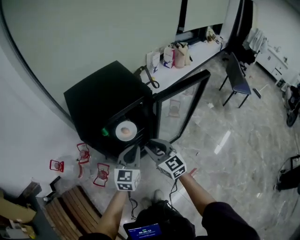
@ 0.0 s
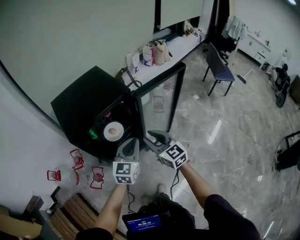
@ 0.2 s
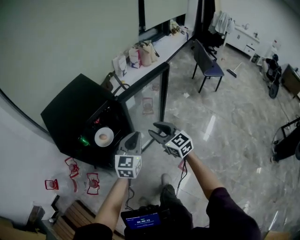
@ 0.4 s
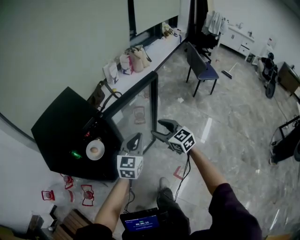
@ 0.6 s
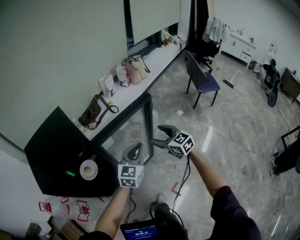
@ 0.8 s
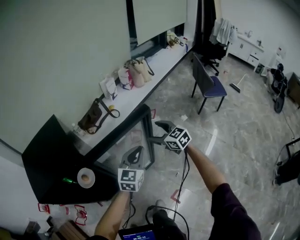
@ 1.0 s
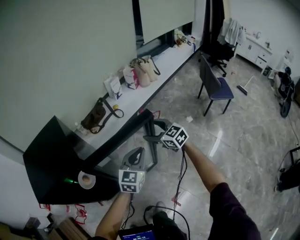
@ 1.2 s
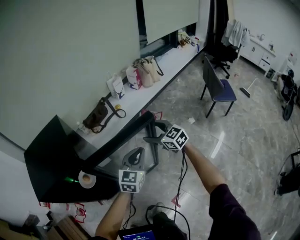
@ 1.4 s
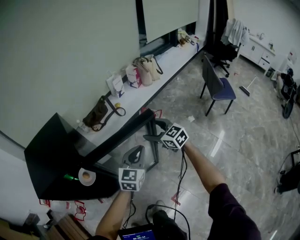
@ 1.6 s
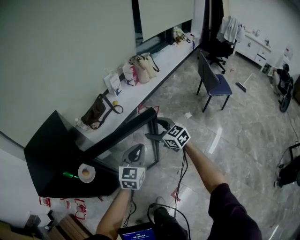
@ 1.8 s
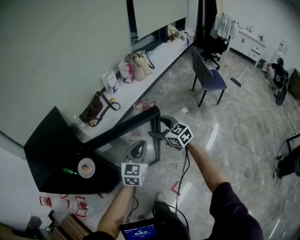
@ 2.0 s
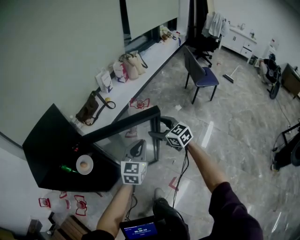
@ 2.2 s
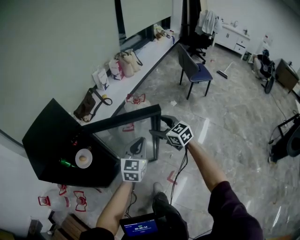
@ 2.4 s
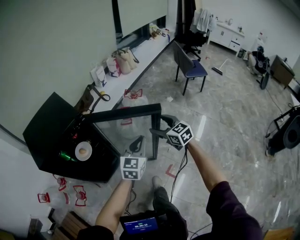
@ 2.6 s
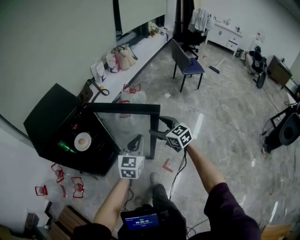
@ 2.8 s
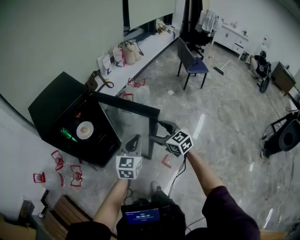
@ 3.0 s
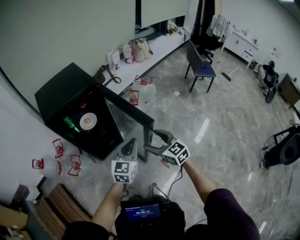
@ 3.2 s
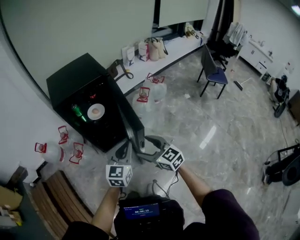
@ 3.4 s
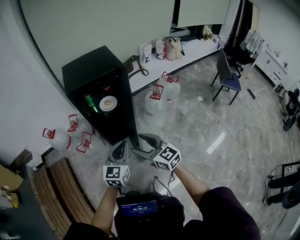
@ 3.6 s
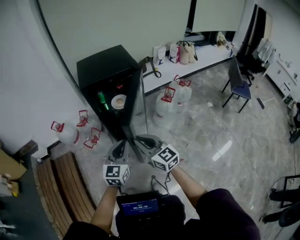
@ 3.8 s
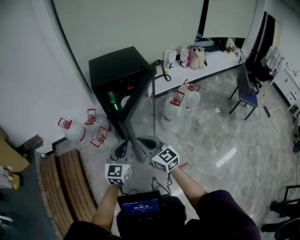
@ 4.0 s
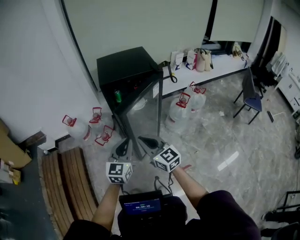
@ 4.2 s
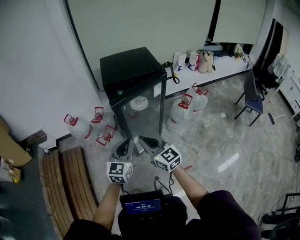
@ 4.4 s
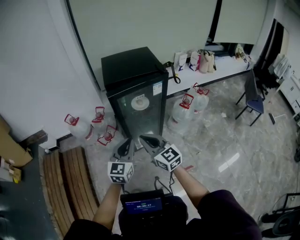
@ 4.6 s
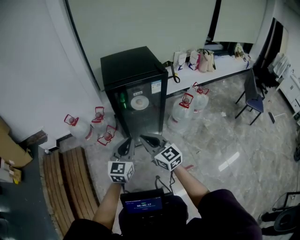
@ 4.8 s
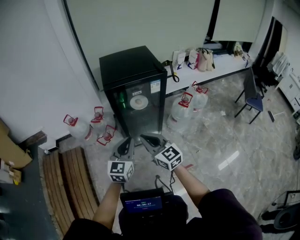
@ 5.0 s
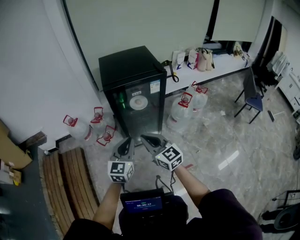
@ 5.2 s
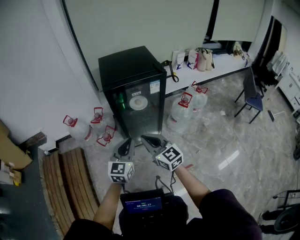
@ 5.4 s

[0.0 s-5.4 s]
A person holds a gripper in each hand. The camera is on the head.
0.0 to 1.4 s: The pair of grippers is taken to the right and forward, about 50 cm. The right gripper opens.
1.4 to 2.8 s: Both grippers travel together backward, some 35 cm. The right gripper changes its angle by approximately 20 degrees.
2.8 to 4.0 s: The left gripper moves approximately 30 cm, and swivels about 40 degrees. Meanwhile the right gripper changes place by roughly 35 cm, swivels approximately 40 degrees, and closes its fingers.
4.0 to 5.4 s: The grippers stay close to where they were, moving slightly.

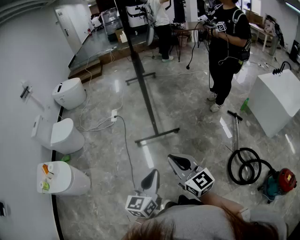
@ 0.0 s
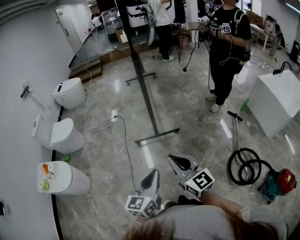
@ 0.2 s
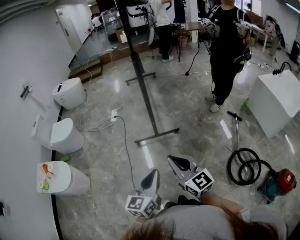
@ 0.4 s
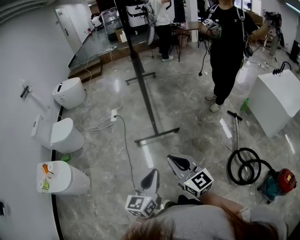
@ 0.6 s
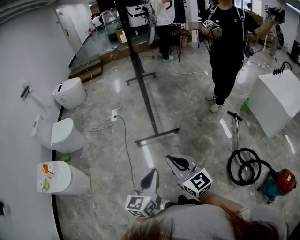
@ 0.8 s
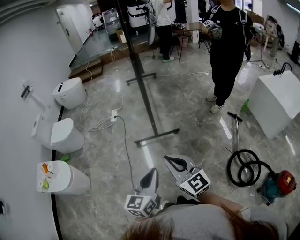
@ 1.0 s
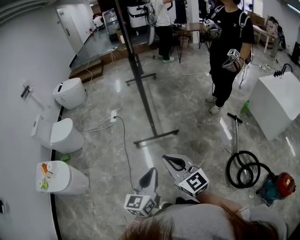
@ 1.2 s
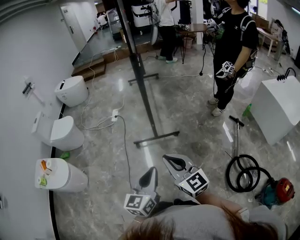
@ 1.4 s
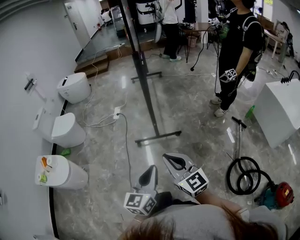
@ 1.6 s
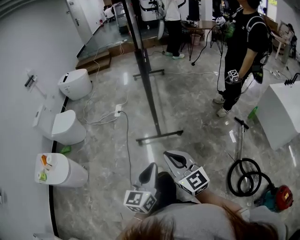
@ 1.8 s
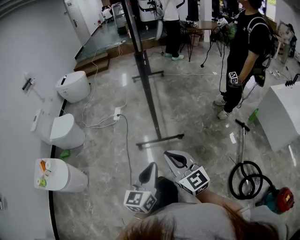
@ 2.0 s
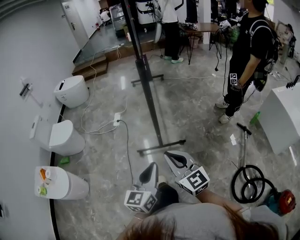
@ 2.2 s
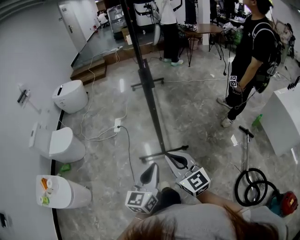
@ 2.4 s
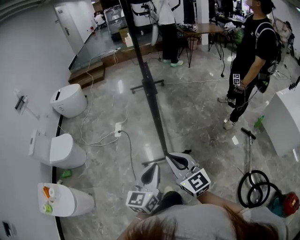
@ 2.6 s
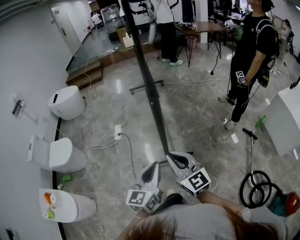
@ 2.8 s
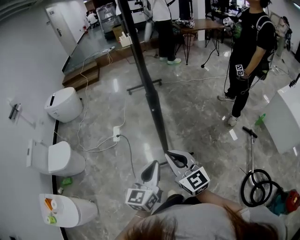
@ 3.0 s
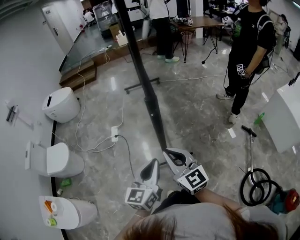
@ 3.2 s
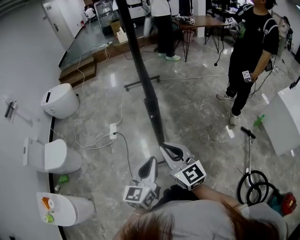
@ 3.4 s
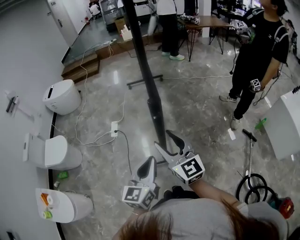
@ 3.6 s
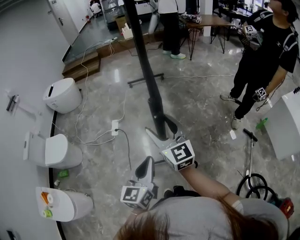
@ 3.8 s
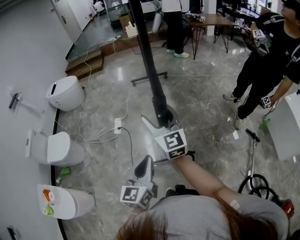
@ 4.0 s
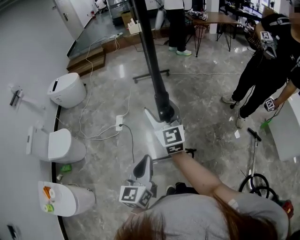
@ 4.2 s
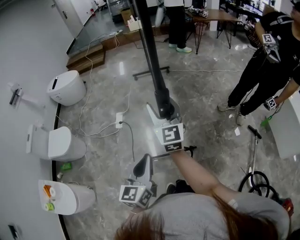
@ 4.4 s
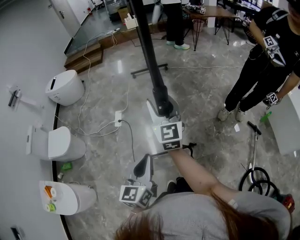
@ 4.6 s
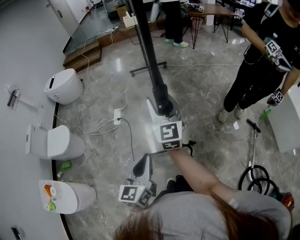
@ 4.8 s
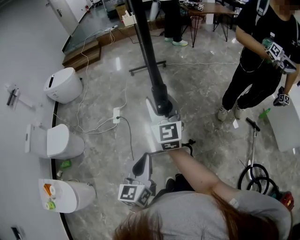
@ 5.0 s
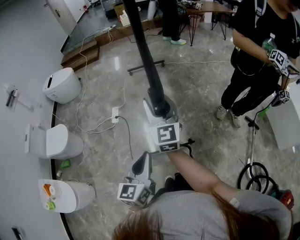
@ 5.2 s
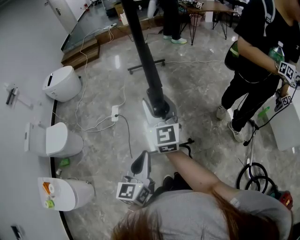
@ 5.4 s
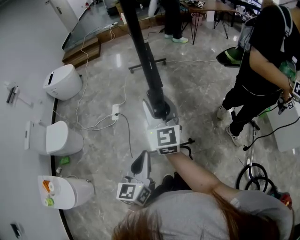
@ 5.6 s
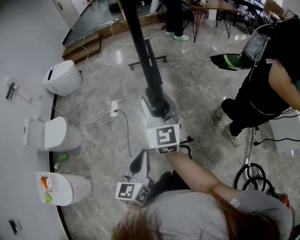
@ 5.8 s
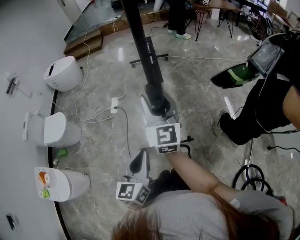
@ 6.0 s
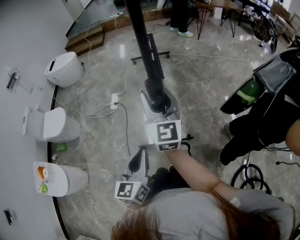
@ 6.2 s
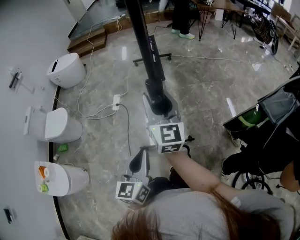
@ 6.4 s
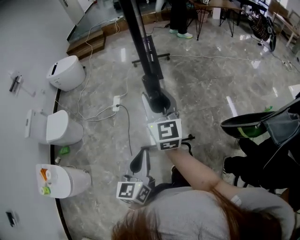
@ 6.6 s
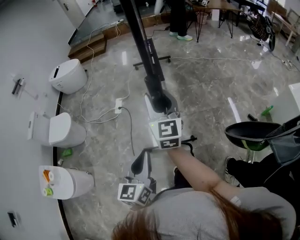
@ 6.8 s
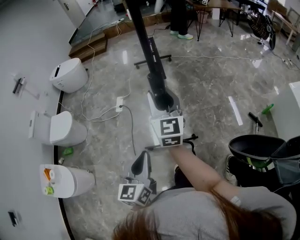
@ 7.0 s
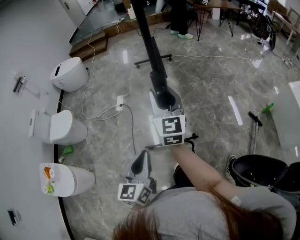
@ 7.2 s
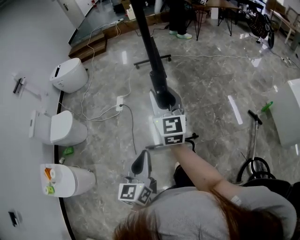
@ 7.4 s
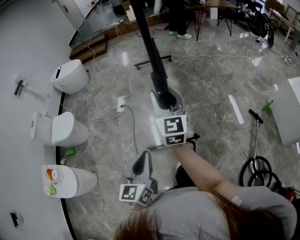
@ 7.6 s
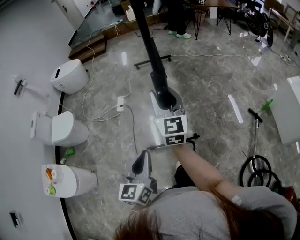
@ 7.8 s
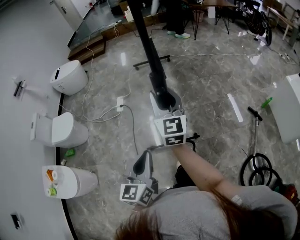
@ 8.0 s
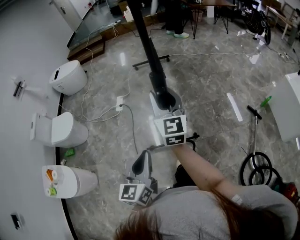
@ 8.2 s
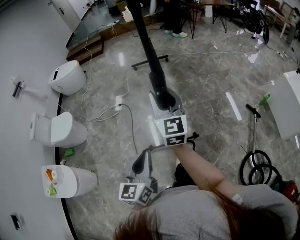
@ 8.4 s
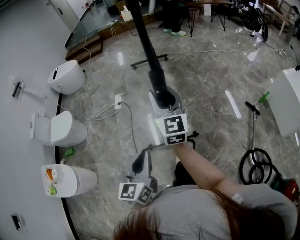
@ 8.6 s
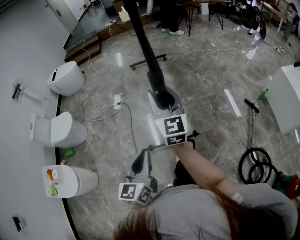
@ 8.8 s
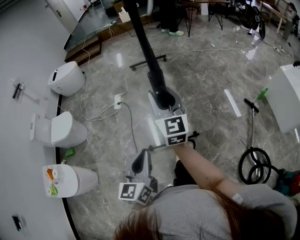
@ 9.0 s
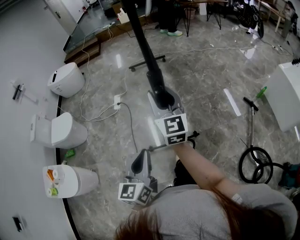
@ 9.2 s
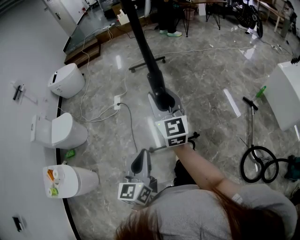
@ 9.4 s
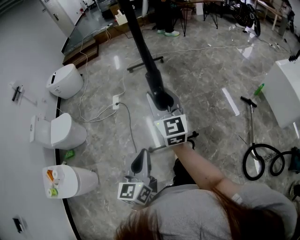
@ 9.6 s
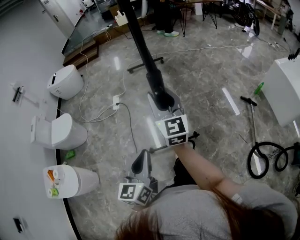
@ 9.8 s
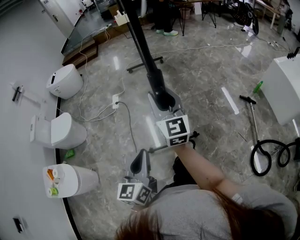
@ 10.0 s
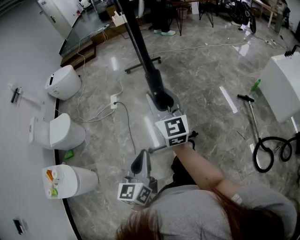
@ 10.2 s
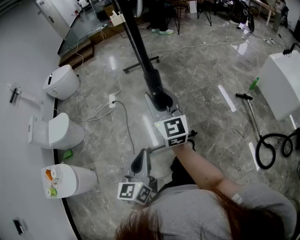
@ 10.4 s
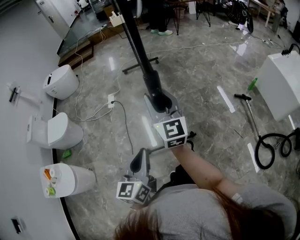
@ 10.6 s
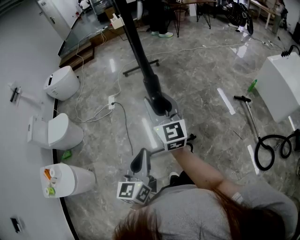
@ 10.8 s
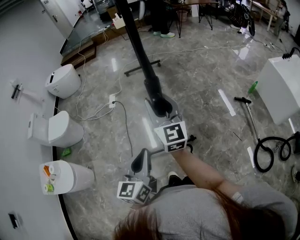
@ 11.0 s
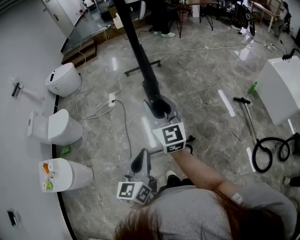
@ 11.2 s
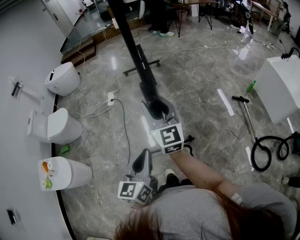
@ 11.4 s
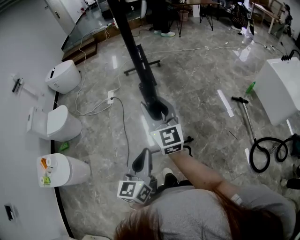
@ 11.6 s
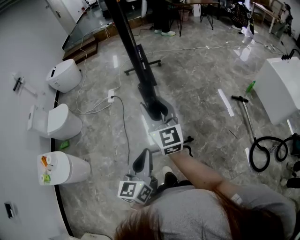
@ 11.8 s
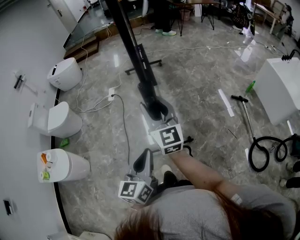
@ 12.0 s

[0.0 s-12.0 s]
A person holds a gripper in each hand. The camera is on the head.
0.0 to 1.6 s: The left gripper moves approximately 5 cm.
1.6 to 3.0 s: Both grippers move forward, approximately 35 cm.
3.0 to 4.4 s: The left gripper shifts by roughly 5 cm; the right gripper moves forward, about 20 cm, and opens up.
4.4 to 6.0 s: The left gripper changes place by roughly 5 cm; the right gripper is displaced backward by about 5 cm.
6.0 to 7.6 s: The two grippers go about 5 cm backward.
7.6 to 9.0 s: The two grippers go some 5 cm backward.
9.0 to 10.4 s: The grippers both shift backward by about 10 cm.
10.4 to 12.0 s: The right gripper is displaced backward by approximately 10 cm, while the left gripper travels backward and to the right by roughly 10 cm.

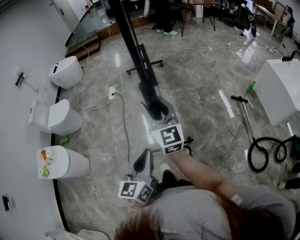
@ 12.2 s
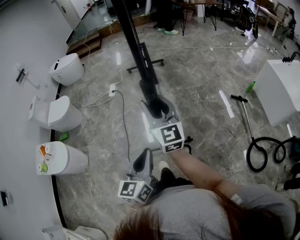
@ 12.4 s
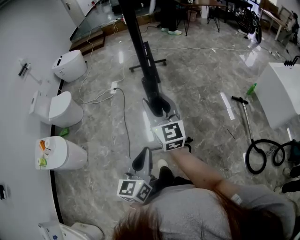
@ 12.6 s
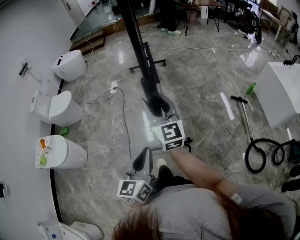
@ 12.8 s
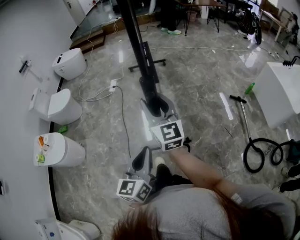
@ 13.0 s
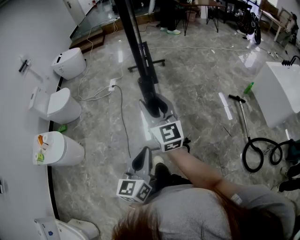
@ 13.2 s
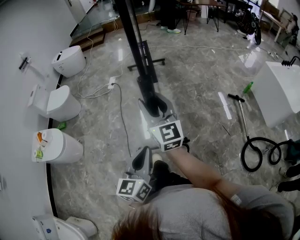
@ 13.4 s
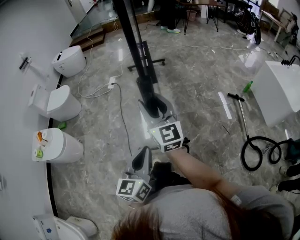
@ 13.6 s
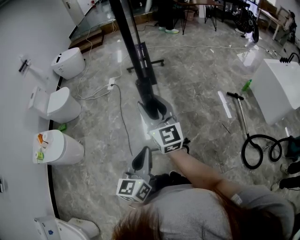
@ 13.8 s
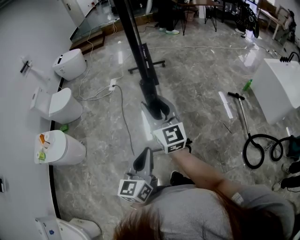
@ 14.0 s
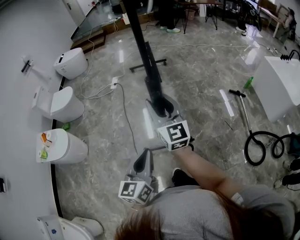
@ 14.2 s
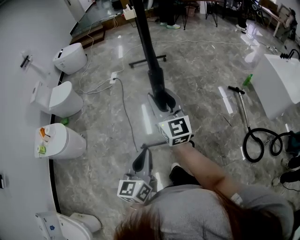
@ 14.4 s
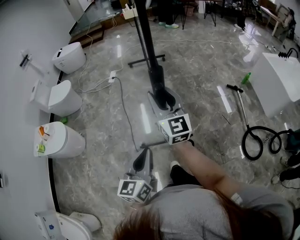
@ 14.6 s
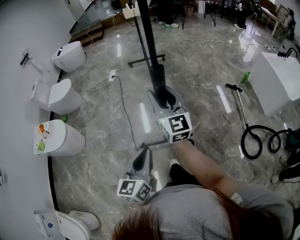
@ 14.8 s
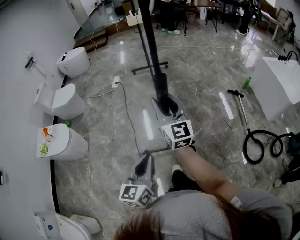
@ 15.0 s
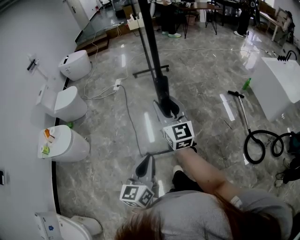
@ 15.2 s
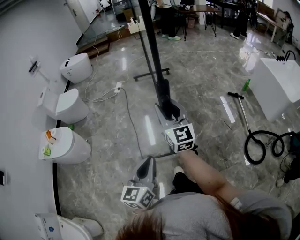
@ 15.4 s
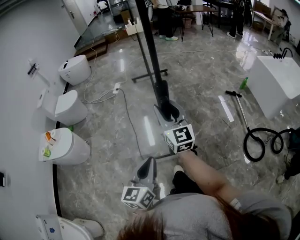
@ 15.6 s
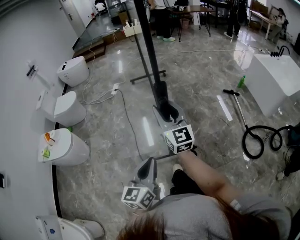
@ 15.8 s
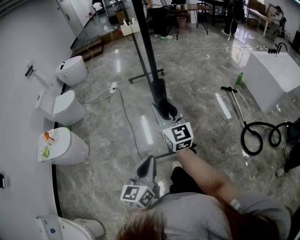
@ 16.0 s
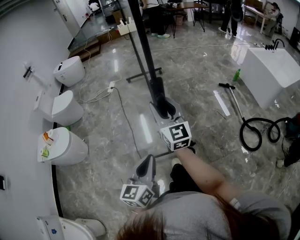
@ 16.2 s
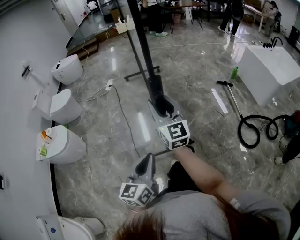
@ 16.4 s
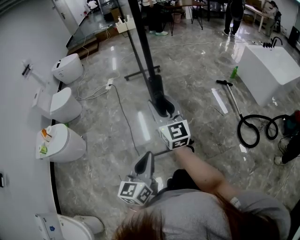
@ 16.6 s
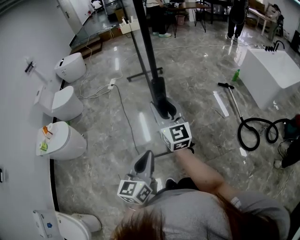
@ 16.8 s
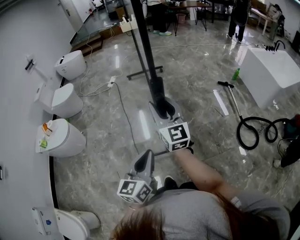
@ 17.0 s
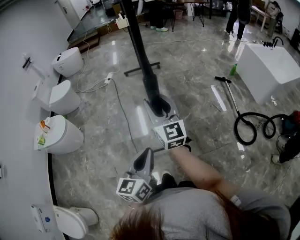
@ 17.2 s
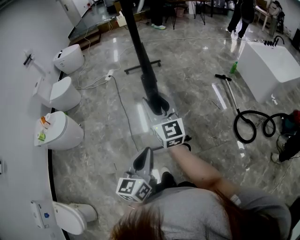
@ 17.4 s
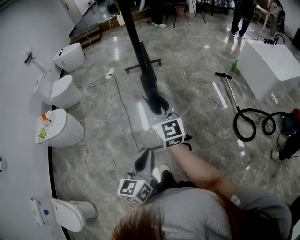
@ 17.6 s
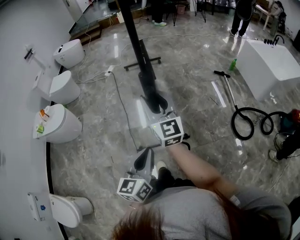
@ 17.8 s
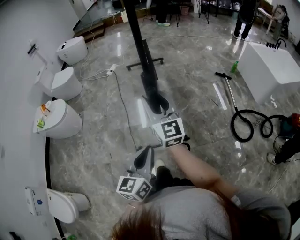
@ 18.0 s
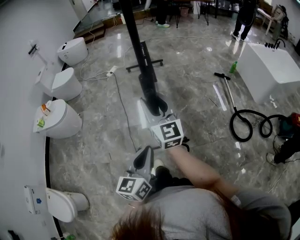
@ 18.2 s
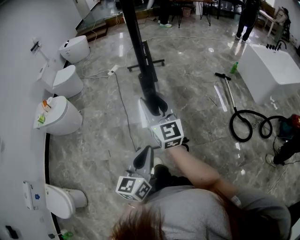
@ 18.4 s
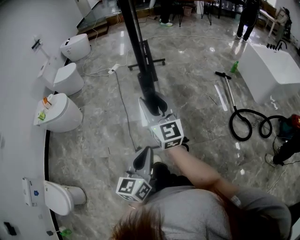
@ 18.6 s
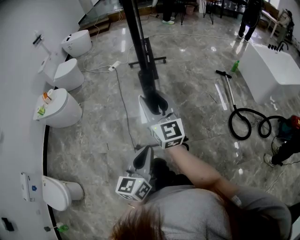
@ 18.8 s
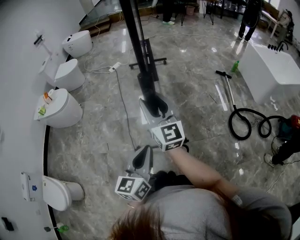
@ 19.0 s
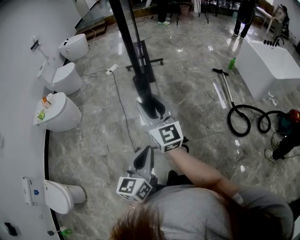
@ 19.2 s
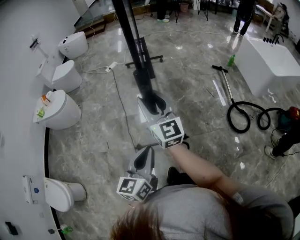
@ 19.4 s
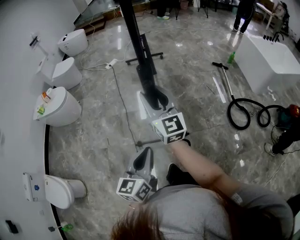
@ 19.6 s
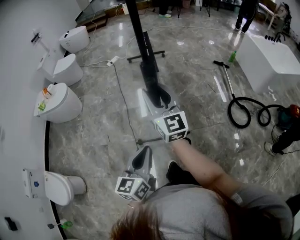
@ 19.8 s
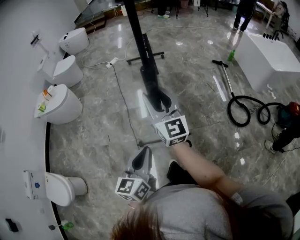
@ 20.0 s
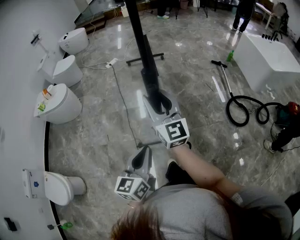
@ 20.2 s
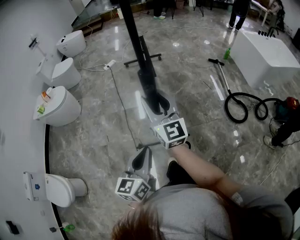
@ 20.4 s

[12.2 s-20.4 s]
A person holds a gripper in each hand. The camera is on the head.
12.2 to 13.8 s: The grippers both shift backward by some 10 cm.
13.8 to 15.4 s: The two grippers go some 10 cm backward.
15.4 to 17.2 s: The left gripper is displaced backward and to the right by about 15 cm; the right gripper goes some 15 cm backward.
17.2 to 18.8 s: The two grippers go about 15 cm backward.
18.8 to 20.4 s: Both grippers travel together backward, approximately 10 cm.
